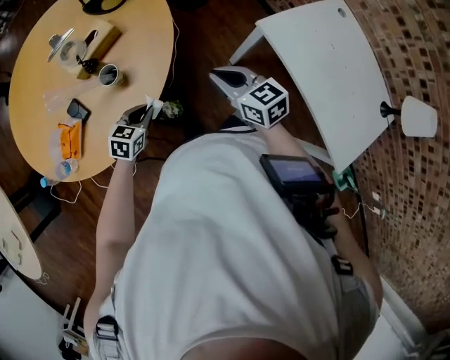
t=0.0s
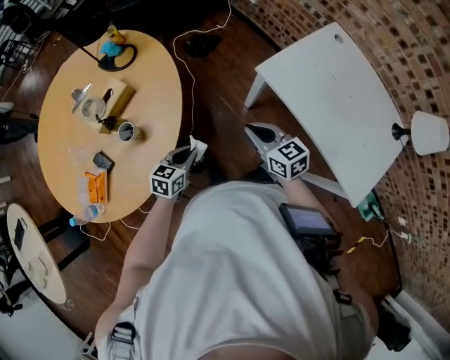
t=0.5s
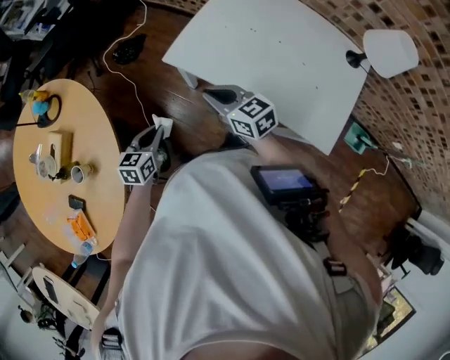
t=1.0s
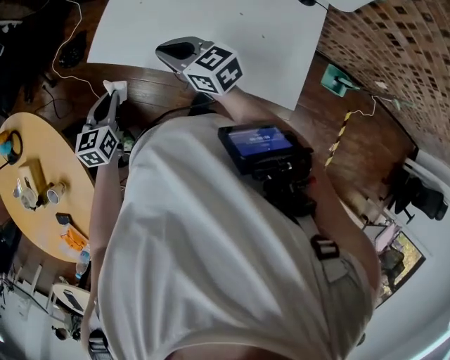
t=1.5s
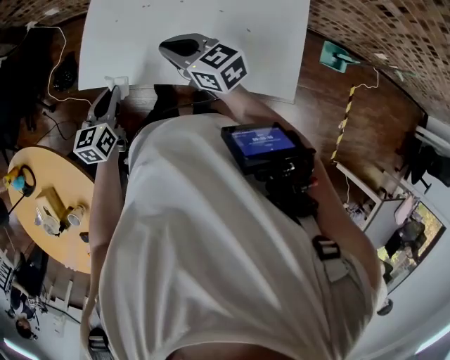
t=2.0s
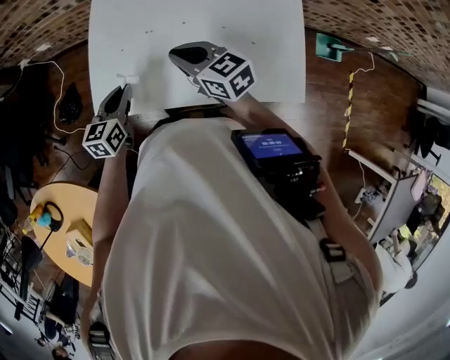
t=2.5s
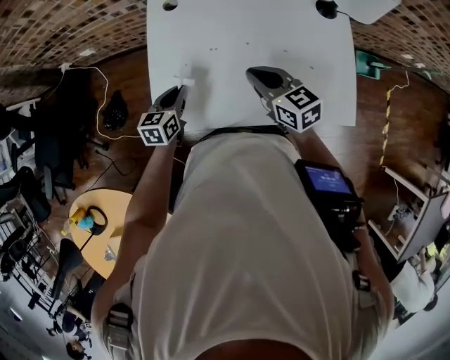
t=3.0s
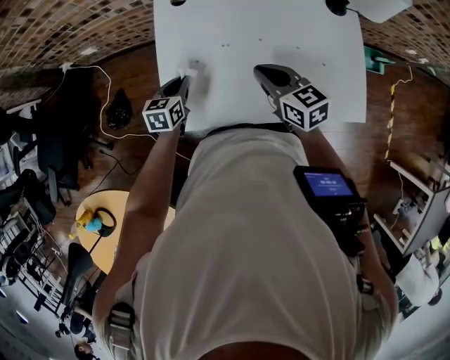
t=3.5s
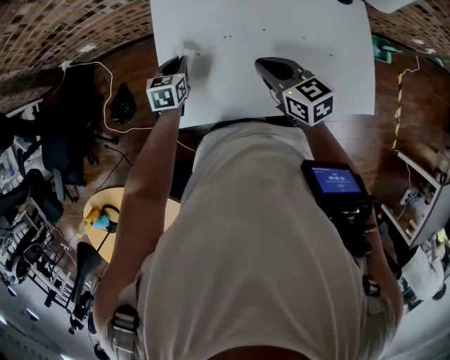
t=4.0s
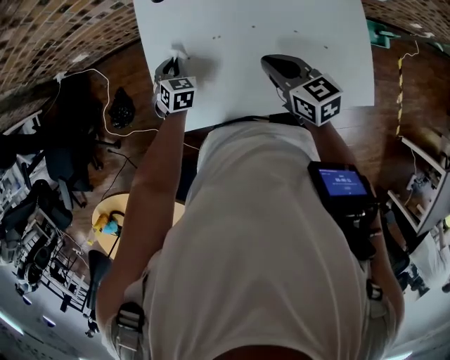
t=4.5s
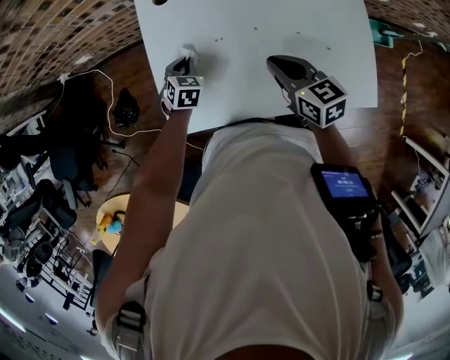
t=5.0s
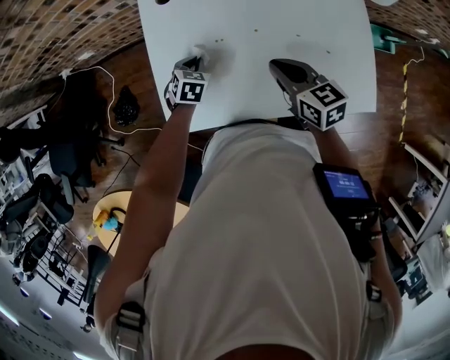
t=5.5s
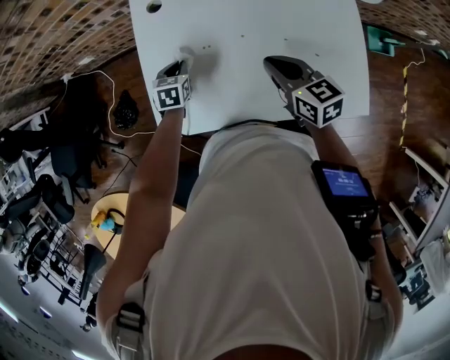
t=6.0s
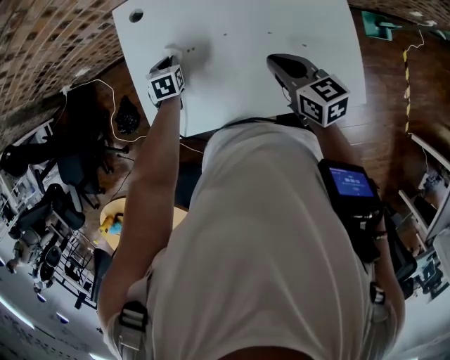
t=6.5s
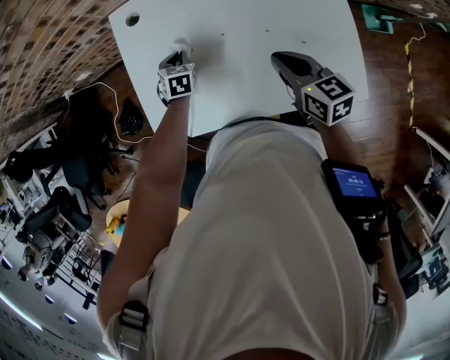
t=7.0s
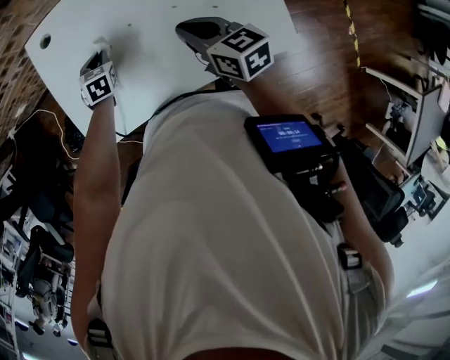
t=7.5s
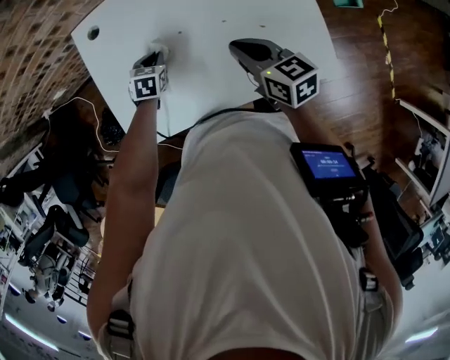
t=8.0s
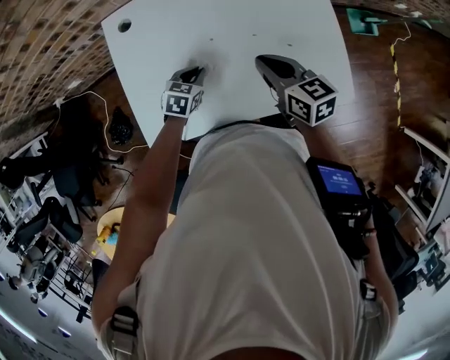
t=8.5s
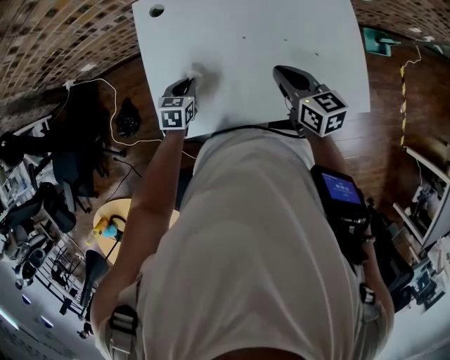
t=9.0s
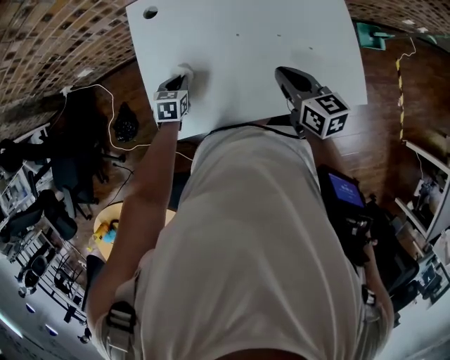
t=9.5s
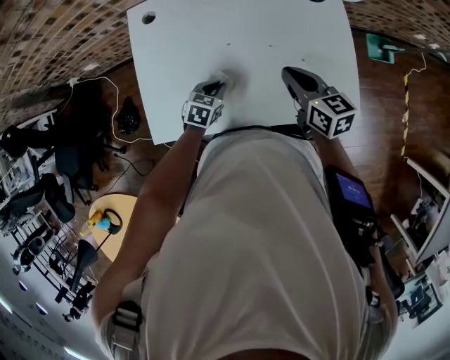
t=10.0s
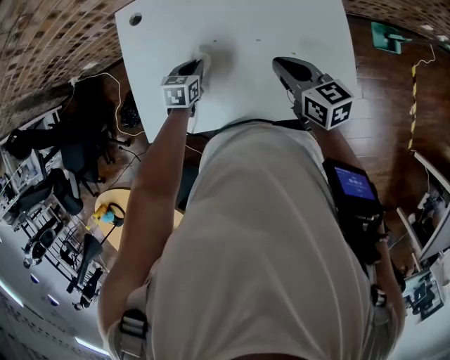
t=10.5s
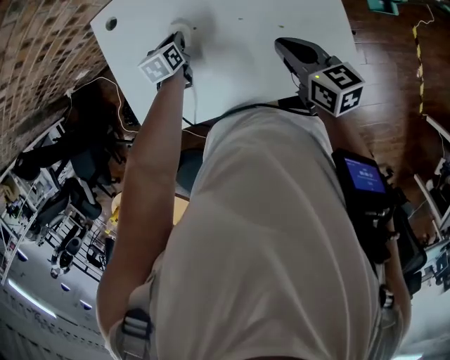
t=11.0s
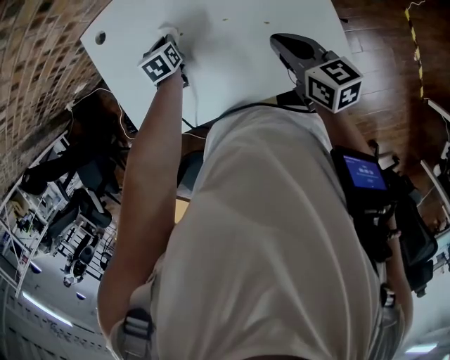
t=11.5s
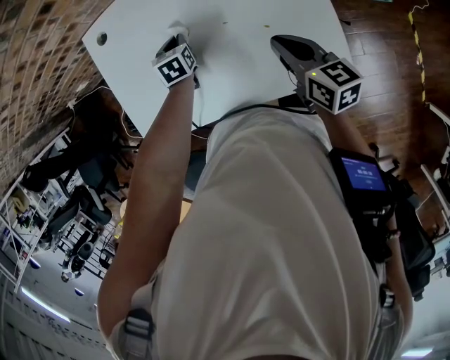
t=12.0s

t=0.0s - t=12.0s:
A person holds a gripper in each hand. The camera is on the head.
t=0.0s - t=2.0s: Both grippers are carried approximately 50 cm. The right gripper swivels roughly 40 degrees. The left gripper turns by about 30 degrees.
t=2.0s - t=4.0s: The right gripper goes about 10 cm forward, and changes its angle by about 30 degrees. The left gripper shifts approximately 25 cm forward, and swivels about 20 degrees.
t=4.0s - t=6.0s: The left gripper goes about 5 cm to the right. Meanwhile the right gripper heads to the right, covering about 10 cm.
t=6.0s - t=8.0s: The left gripper heads to the right, covering approximately 10 cm; the right gripper travels to the right by approximately 5 cm.
t=8.0s - t=10.0s: The left gripper goes left and right, about 15 cm each way, reversing 2 times.
t=10.0s - t=12.0s: The right gripper moves to the right, about 10 cm, while the left gripper heads forward, covering approximately 15 cm, and turns by roughly 30 degrees.

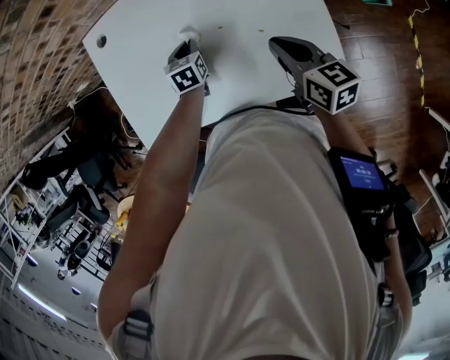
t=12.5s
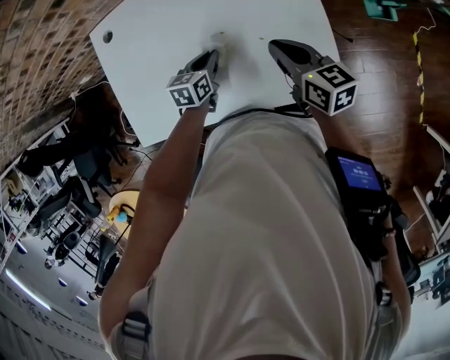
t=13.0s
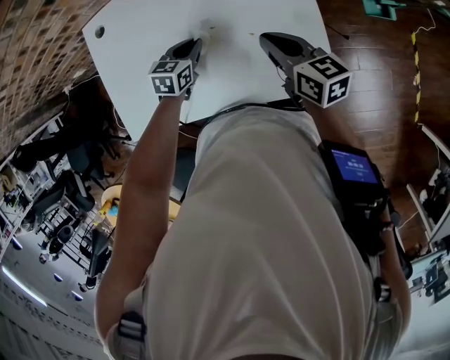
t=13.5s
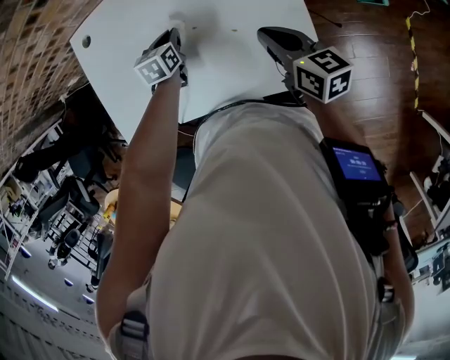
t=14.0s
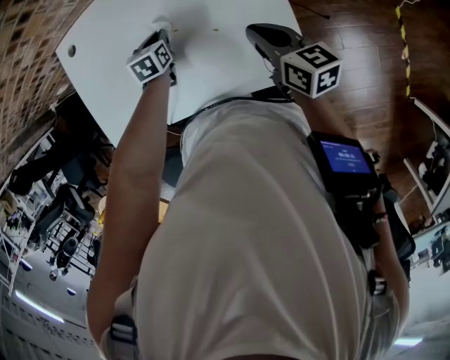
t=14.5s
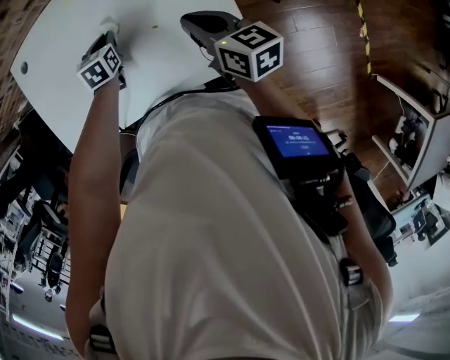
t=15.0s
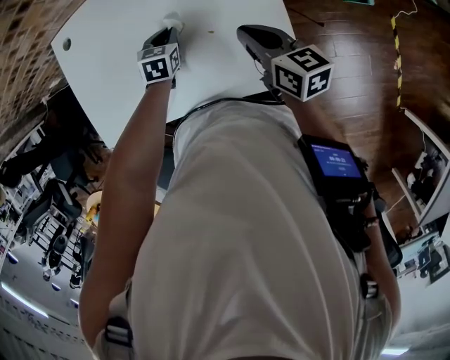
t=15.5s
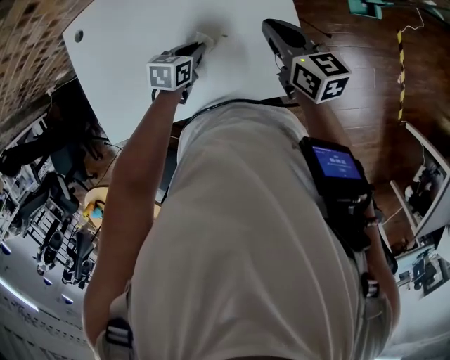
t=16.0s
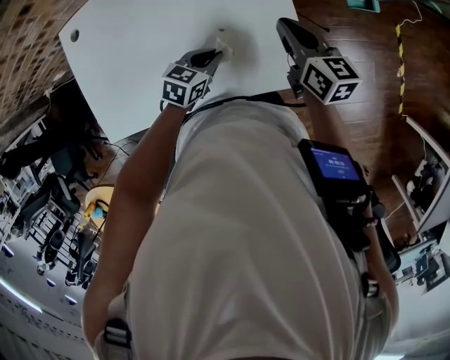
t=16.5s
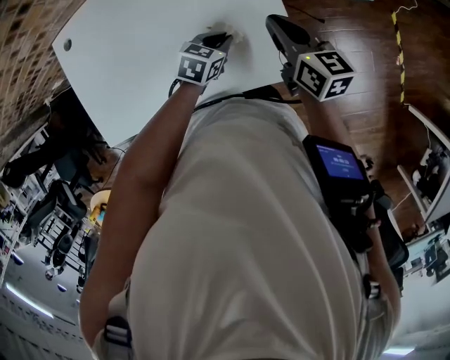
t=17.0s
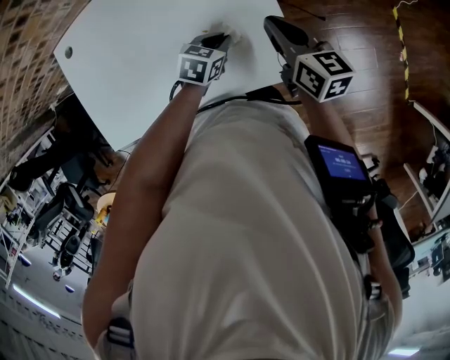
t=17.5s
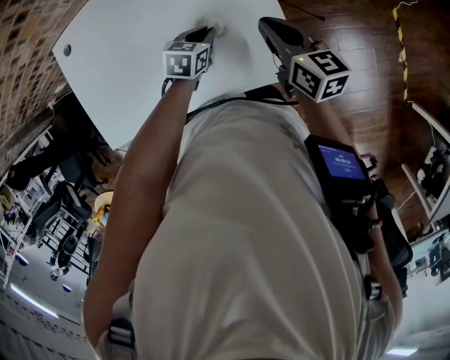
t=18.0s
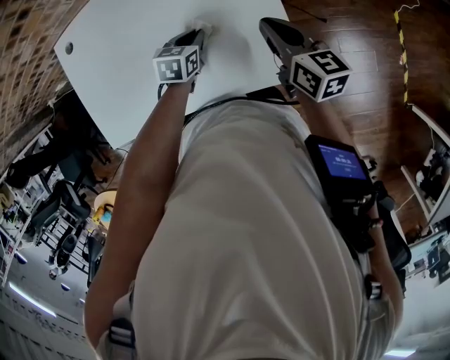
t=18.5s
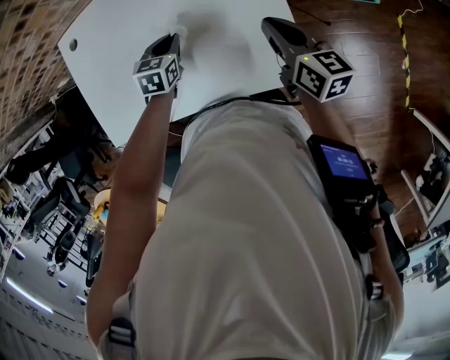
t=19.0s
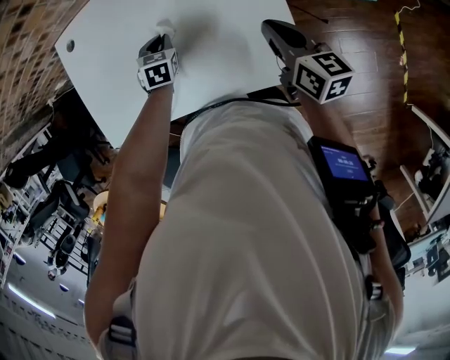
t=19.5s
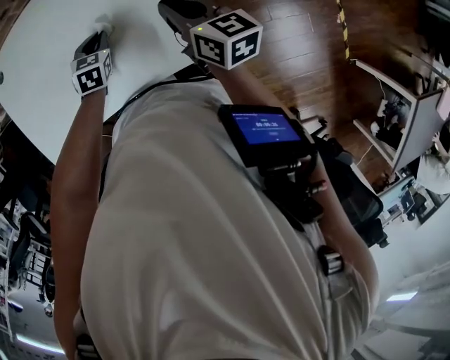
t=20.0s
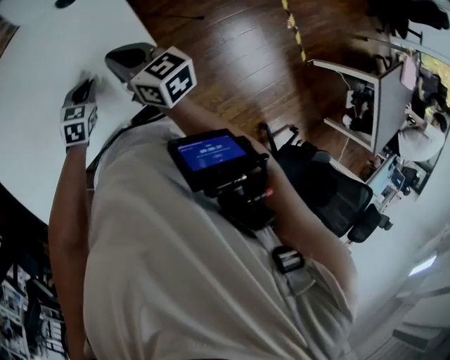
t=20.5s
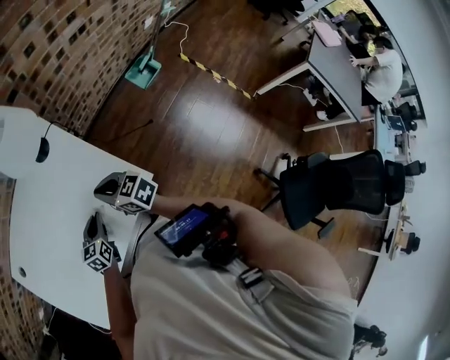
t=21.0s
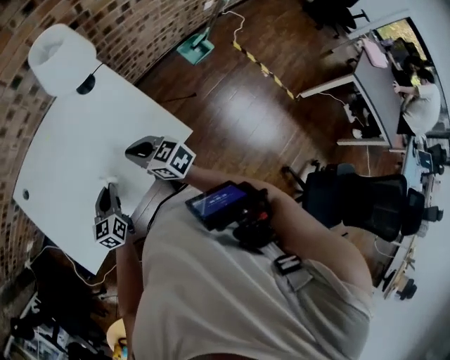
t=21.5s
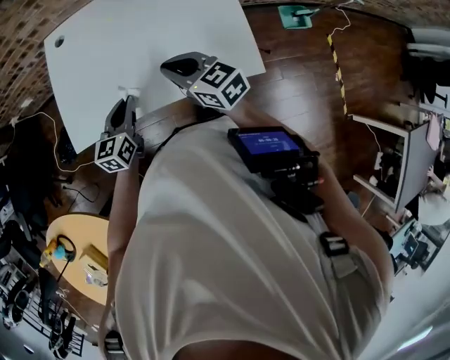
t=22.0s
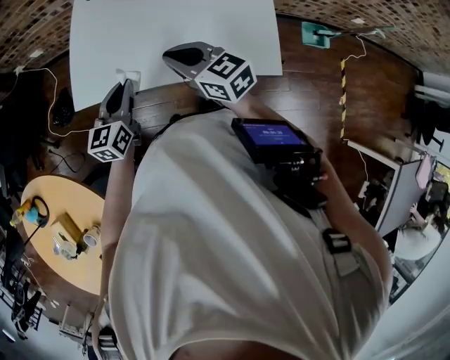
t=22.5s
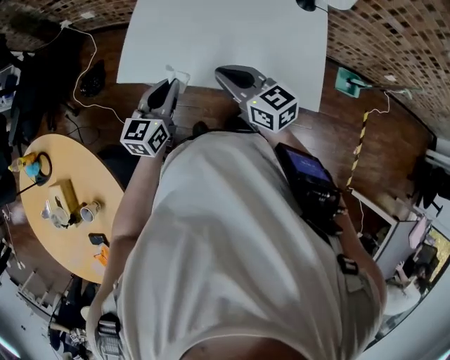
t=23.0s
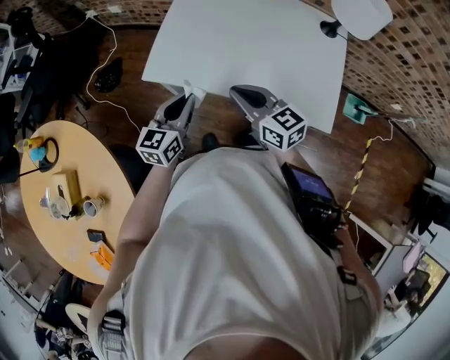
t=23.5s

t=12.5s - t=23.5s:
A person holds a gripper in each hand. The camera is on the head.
t=12.5s - t=14.5s: Both grippers move to the right, approximately 5 cm. The left gripper reaches approximately 5 cm backward, then returns.
t=14.5s - t=16.0s: The left gripper shifts roughly 10 cm backward and to the right, and swivels approximately 20 degrees.
t=16.0s - t=18.0s: The left gripper is displaced to the right by roughly 5 cm.
t=18.0s - t=20.0s: The left gripper shifts approximately 5 cm to the left.
t=20.0s - t=21.5s: The right gripper heads backward and to the left, covering some 15 cm. The left gripper travels backward and upward by some 15 cm, and changes its angle by roughly 30 degrees.
t=21.5s - t=23.5s: The right gripper moves some 25 cm, and turns by some 40 degrees, while the left gripper ends up approximately 25 cm from where it was, and turns by approximately 30 degrees.

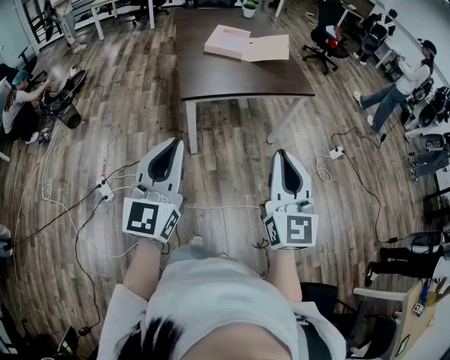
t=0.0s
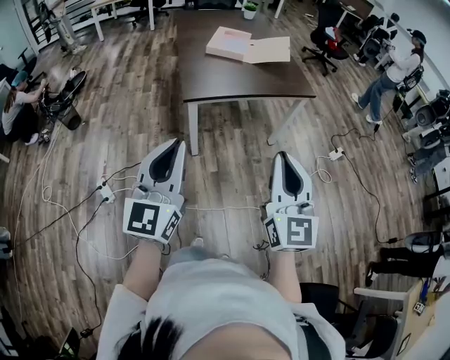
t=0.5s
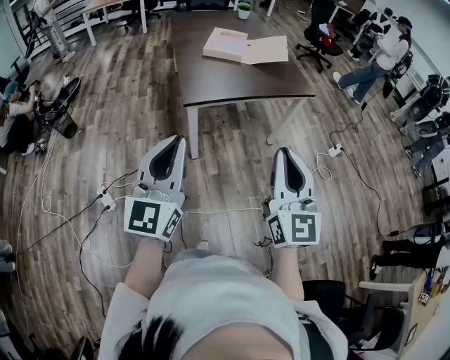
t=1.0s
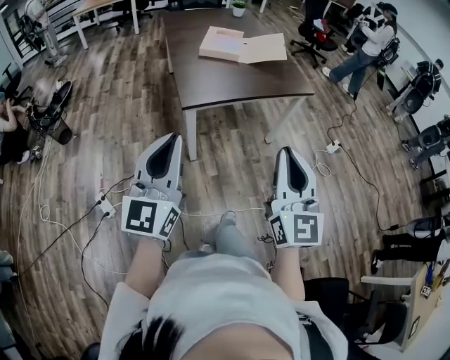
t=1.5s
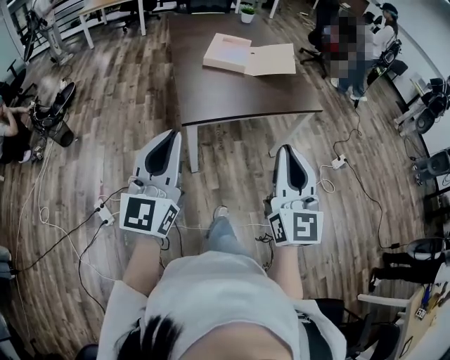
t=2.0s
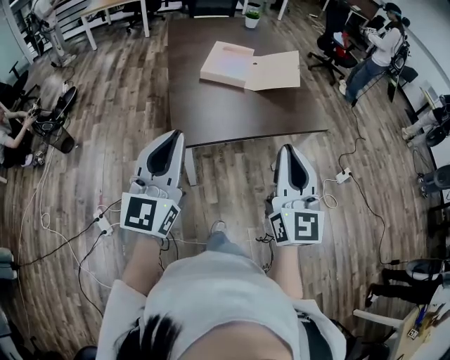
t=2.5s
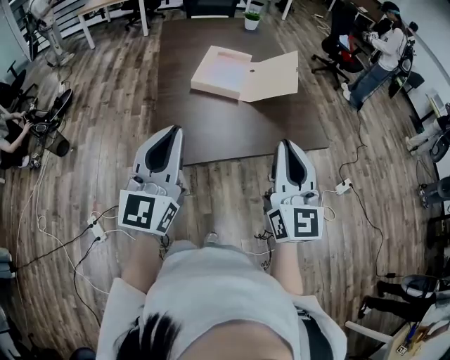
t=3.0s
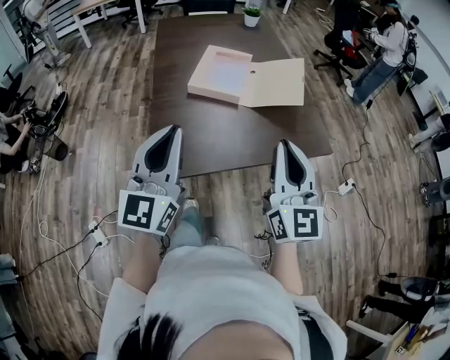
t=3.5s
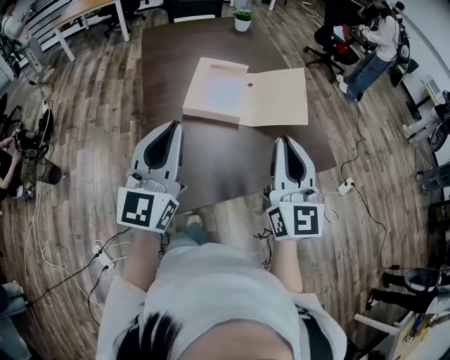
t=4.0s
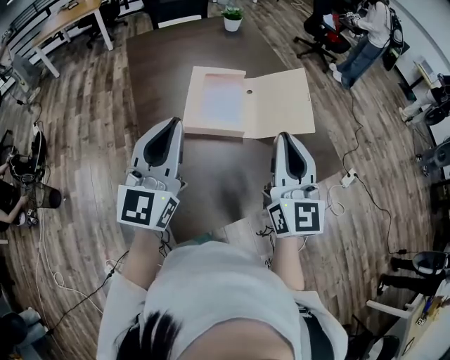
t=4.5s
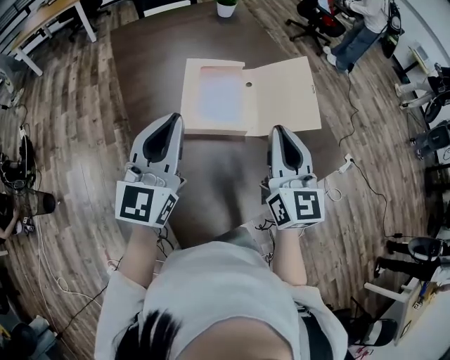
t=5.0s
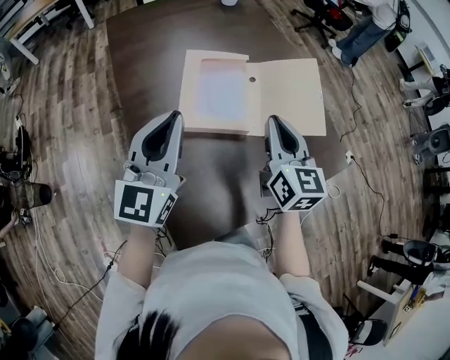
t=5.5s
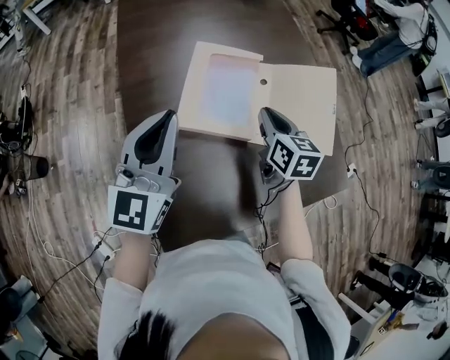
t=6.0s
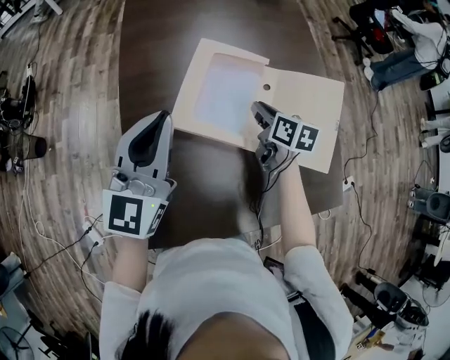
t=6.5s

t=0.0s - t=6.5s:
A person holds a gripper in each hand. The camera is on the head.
t=0.0s - t=2.0s: The left gripper goes about 20 cm forward and to the left; the right gripper travels forward by roughly 15 cm.
t=2.0s - t=4.5s: Both grippers are carried forward, roughly 60 cm.
t=4.5s - t=6.5s: The right gripper shifts roughly 40 cm forward and downward, and points its fingers some 40 degrees further downward; the left gripper shifts roughly 20 cm forward and downward.
